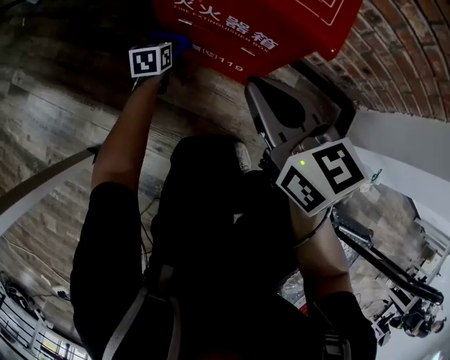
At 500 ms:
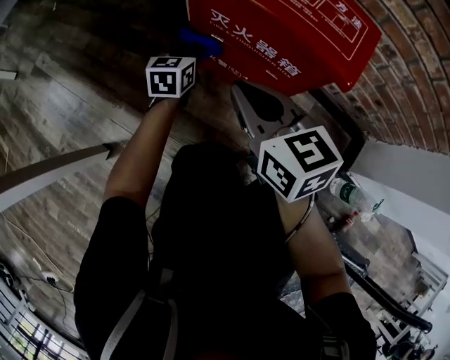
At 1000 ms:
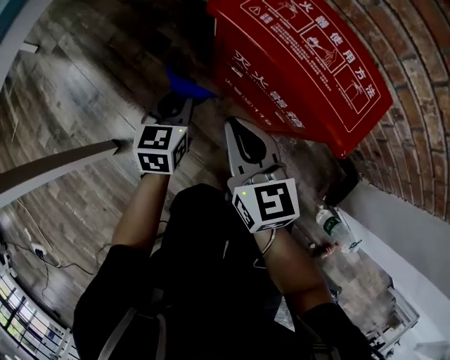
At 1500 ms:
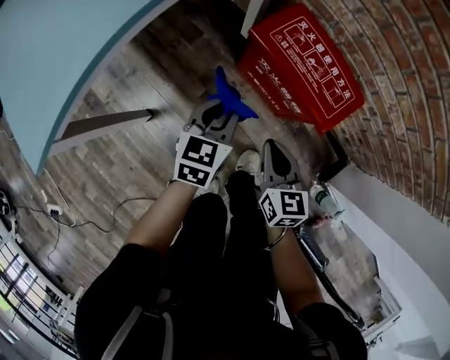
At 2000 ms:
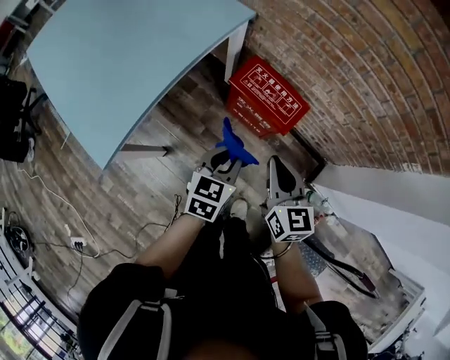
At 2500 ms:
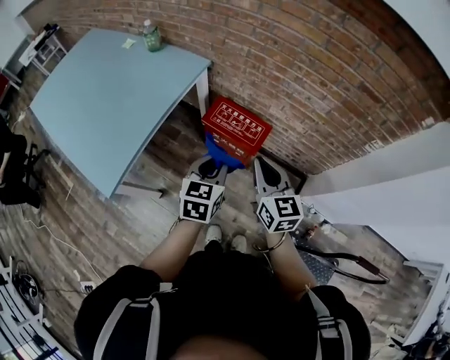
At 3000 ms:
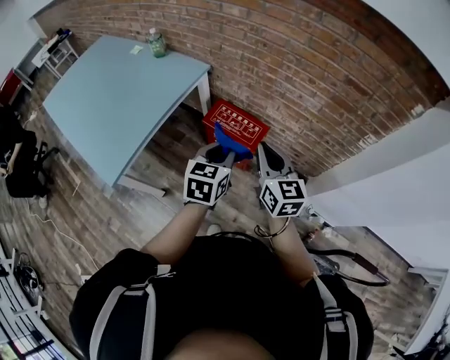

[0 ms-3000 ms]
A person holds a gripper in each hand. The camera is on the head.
0 ms to 1500 ms: The left gripper is displaced upward and backward by approximately 40 cm, while the right gripper travels upward by approximately 10 cm.
1500 ms to 3000 ms: Both grippers move upward, roughly 50 cm. The right gripper swivels about 20 degrees.

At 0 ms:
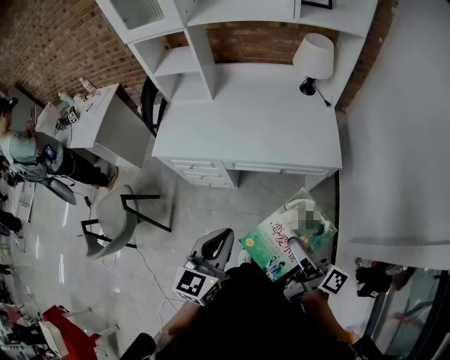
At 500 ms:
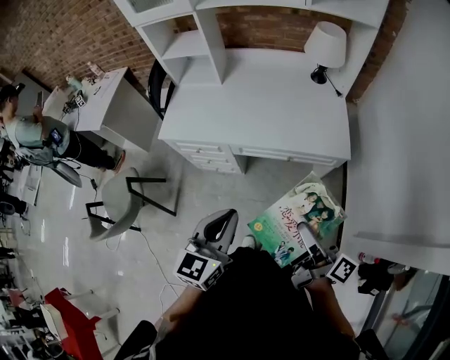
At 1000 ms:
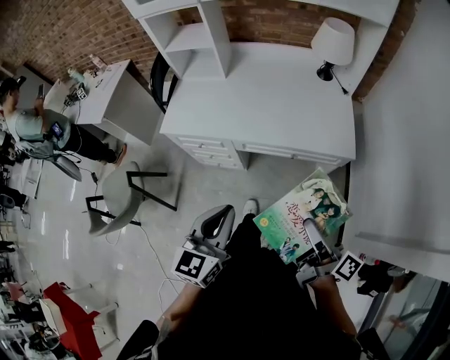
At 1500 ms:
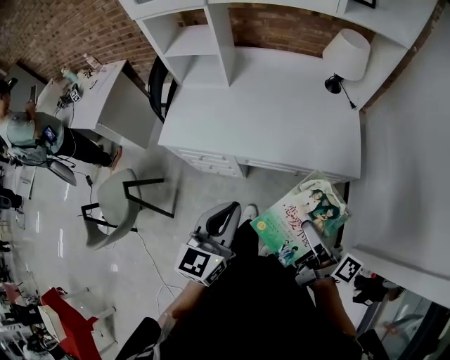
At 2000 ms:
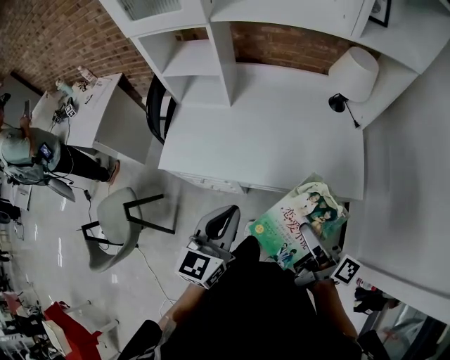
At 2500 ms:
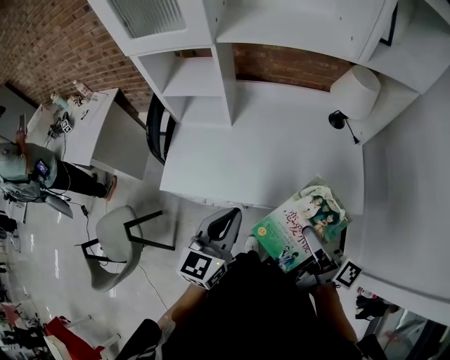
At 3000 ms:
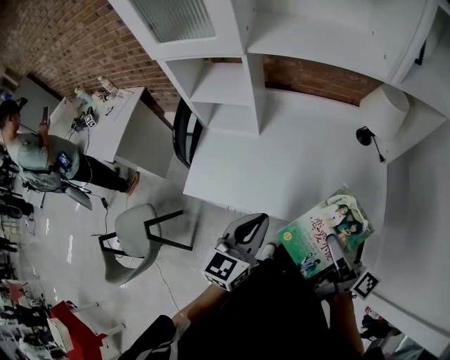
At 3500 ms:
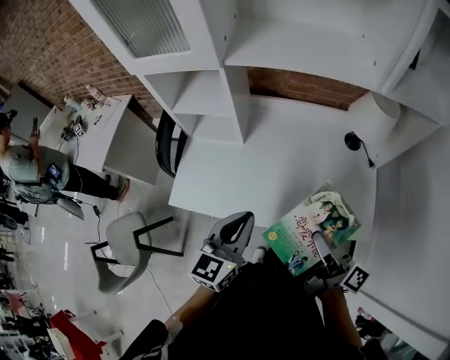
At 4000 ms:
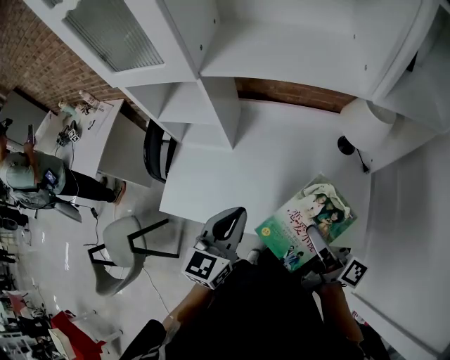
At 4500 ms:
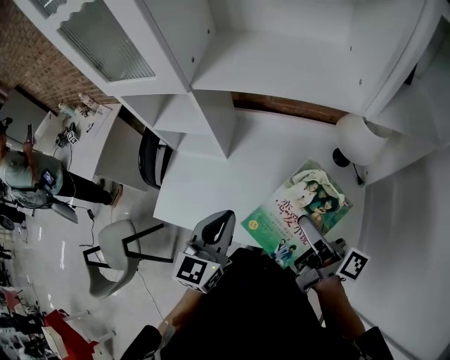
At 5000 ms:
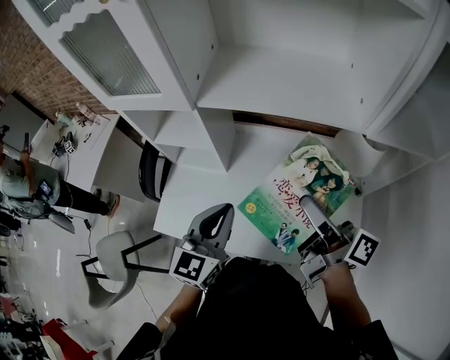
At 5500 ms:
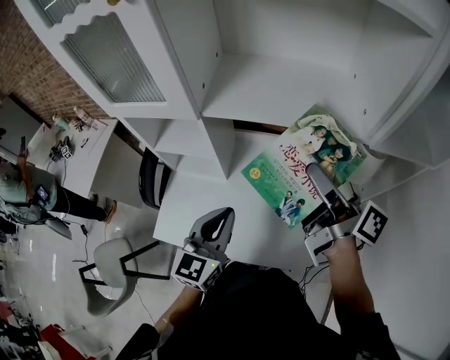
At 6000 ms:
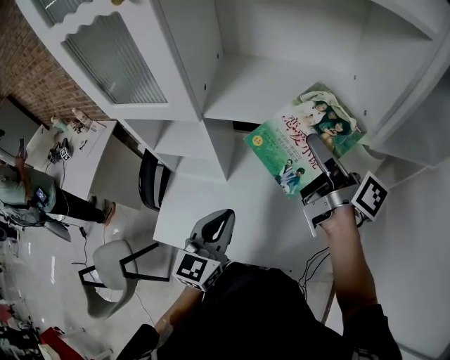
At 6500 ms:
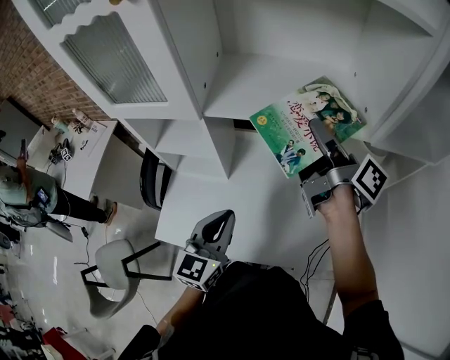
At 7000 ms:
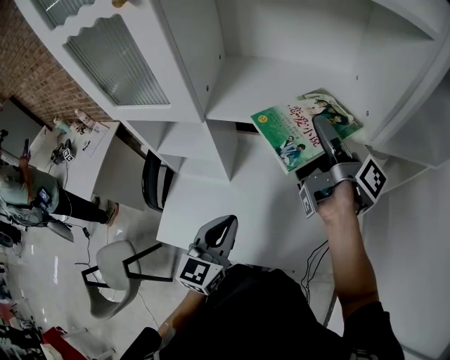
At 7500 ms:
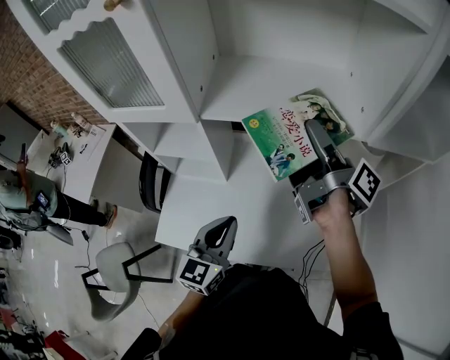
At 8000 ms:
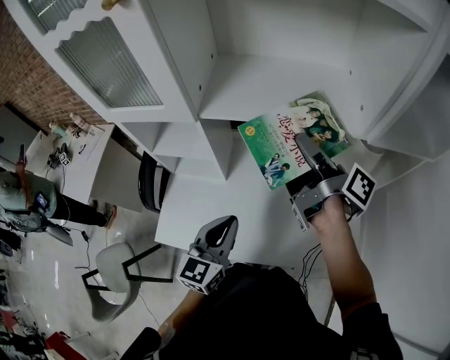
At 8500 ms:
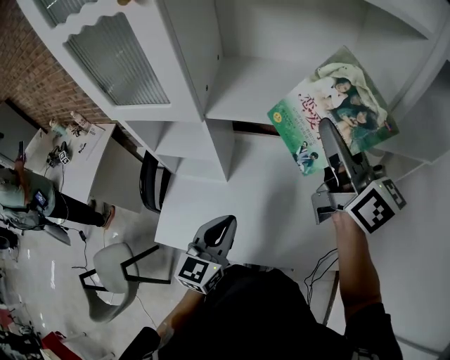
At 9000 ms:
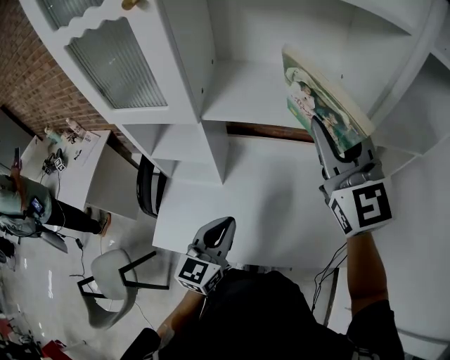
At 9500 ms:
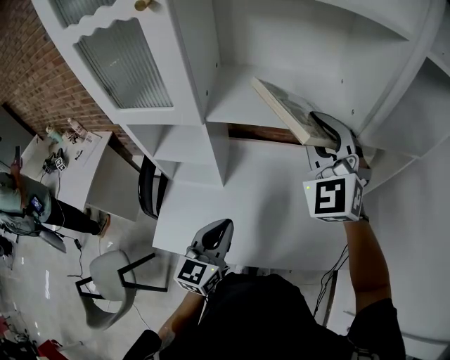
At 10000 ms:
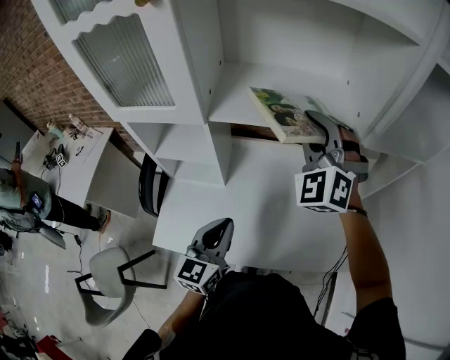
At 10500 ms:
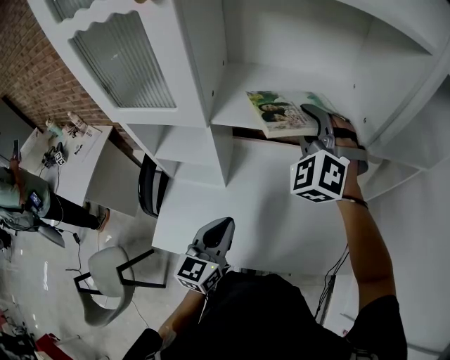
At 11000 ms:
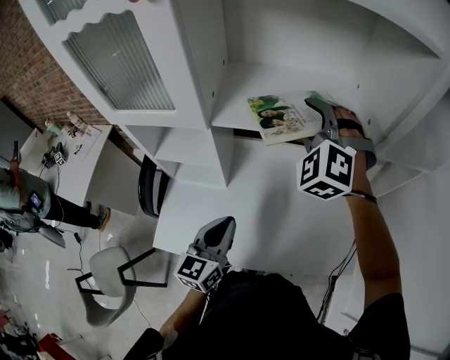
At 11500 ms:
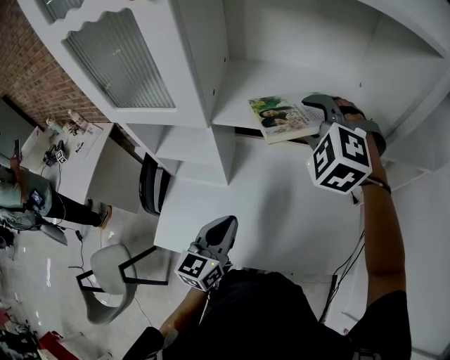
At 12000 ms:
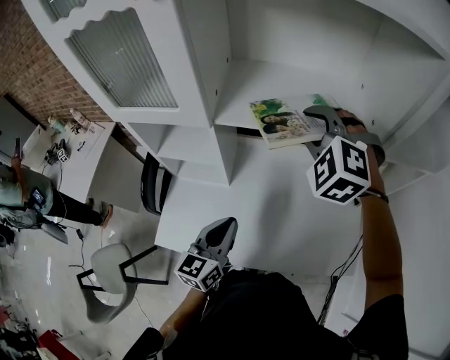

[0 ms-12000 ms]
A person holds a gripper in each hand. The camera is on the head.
0 ms to 2000 ms: The two grippers go about 20 cm forward.
2000 ms to 4000 ms: The grippers both shift forward by about 20 cm.
4000 ms to 6000 ms: The right gripper heads forward and upward, covering about 30 cm. Meanwhile the left gripper goes approximately 10 cm forward.
6000 ms to 8000 ms: The right gripper opens and closes again.
8000 ms to 10000 ms: The right gripper shifts about 5 cm upward, and twists approximately 150 degrees counterclockwise, seen from behind.
10000 ms to 12000 ms: The right gripper ends up approximately 5 cm from where it was, and rotates about 30 degrees.

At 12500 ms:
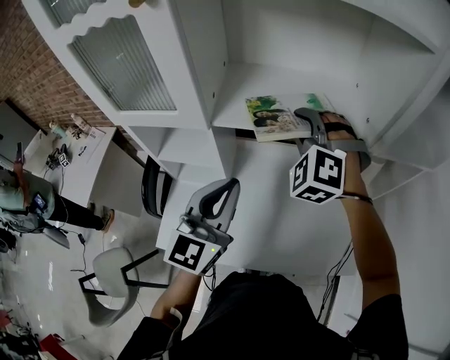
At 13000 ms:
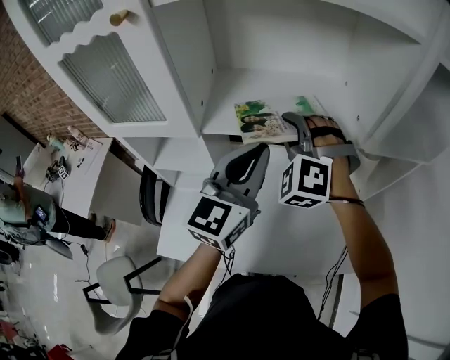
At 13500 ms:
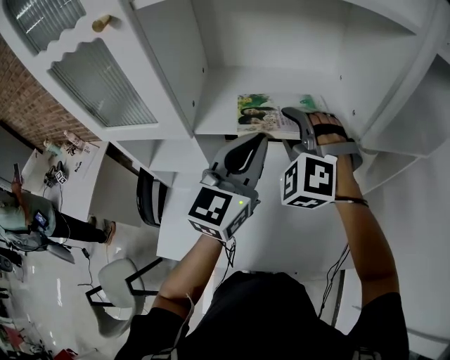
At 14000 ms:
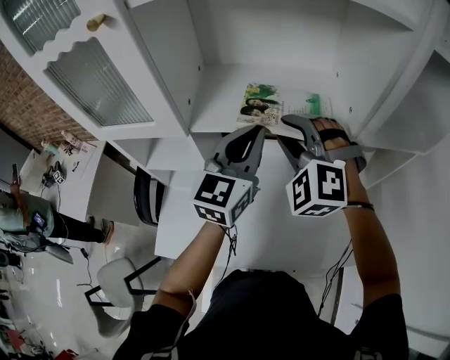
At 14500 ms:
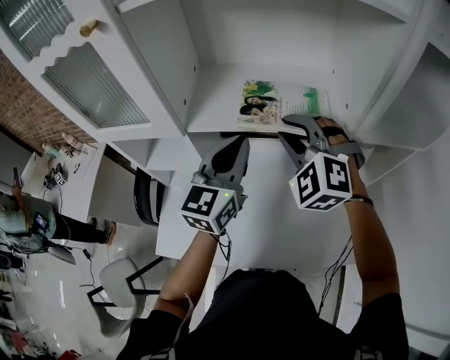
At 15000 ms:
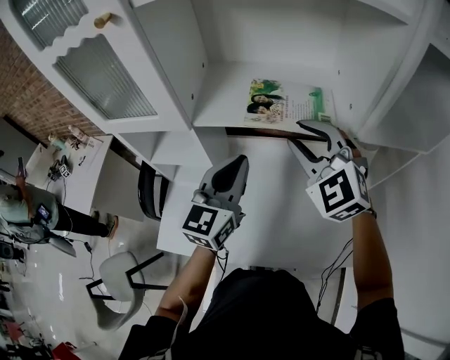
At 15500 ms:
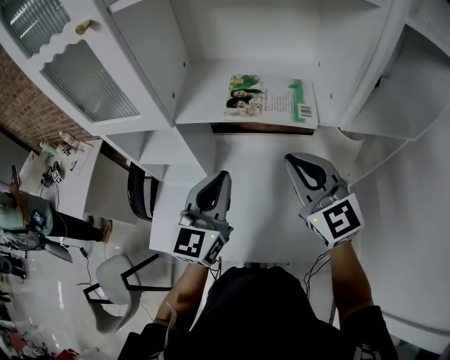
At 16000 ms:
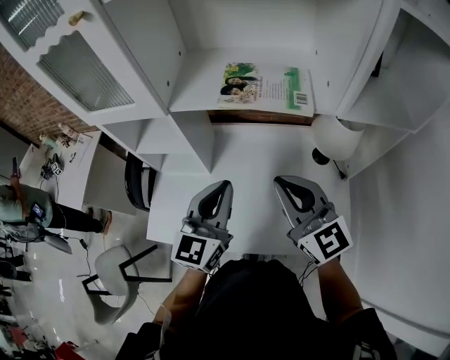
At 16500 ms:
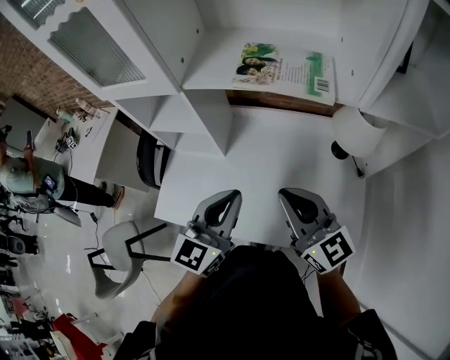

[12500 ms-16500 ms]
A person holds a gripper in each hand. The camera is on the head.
12500 ms to 14500 ms: The left gripper is displaced forward by about 10 cm.
14500 ms to 16500 ms: Both grippers move backward and downward, approximately 20 cm. The right gripper rolls clockwise, seen from behind, by some 60 degrees.

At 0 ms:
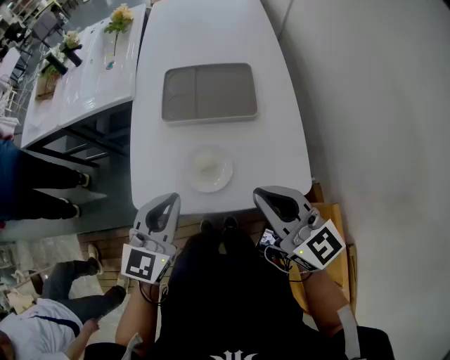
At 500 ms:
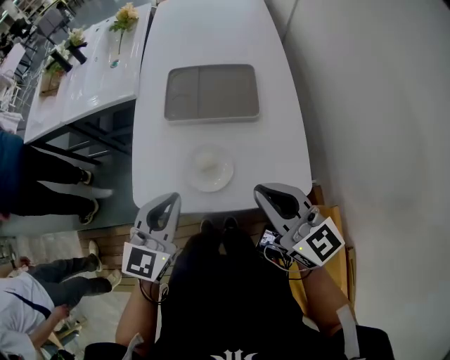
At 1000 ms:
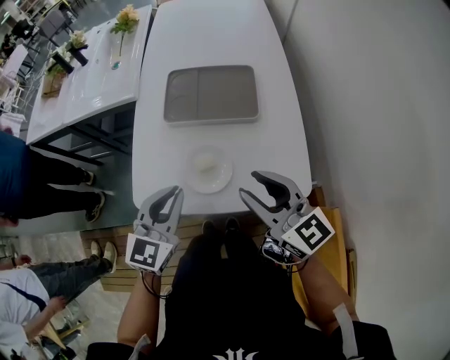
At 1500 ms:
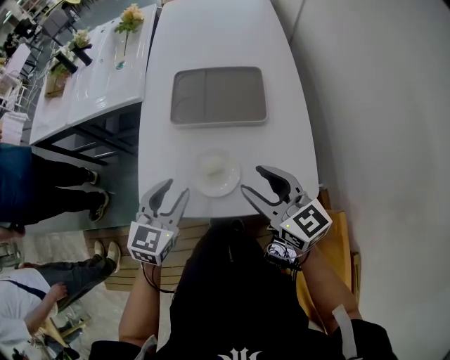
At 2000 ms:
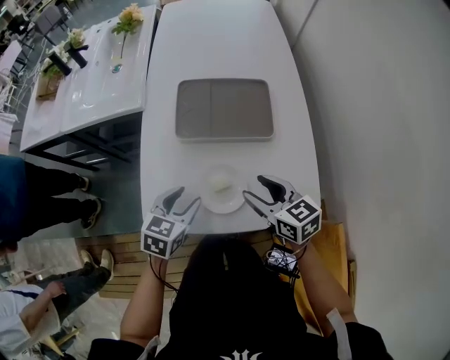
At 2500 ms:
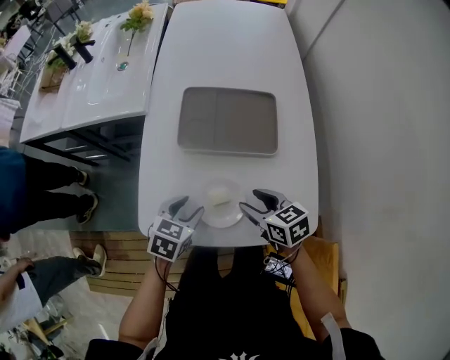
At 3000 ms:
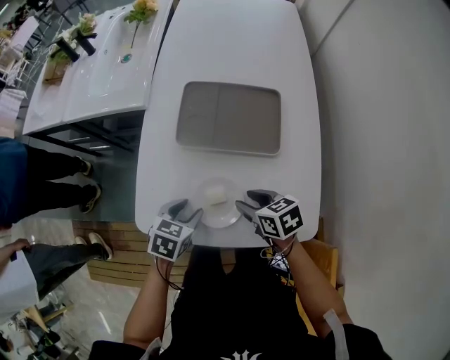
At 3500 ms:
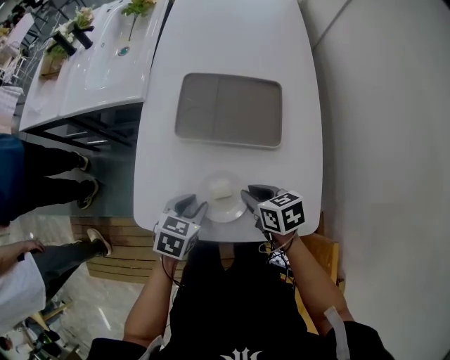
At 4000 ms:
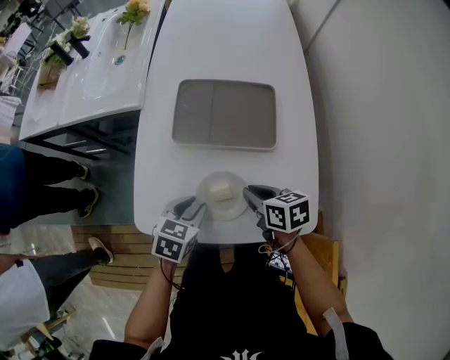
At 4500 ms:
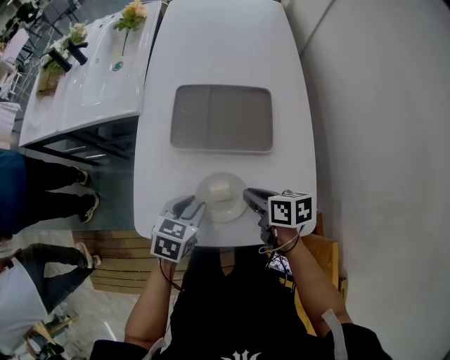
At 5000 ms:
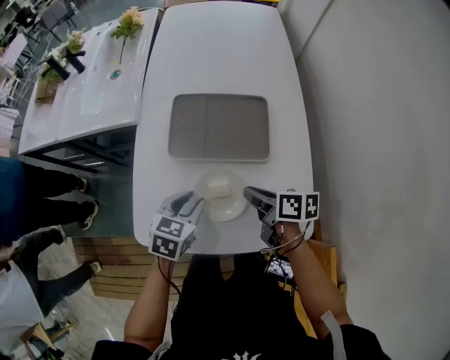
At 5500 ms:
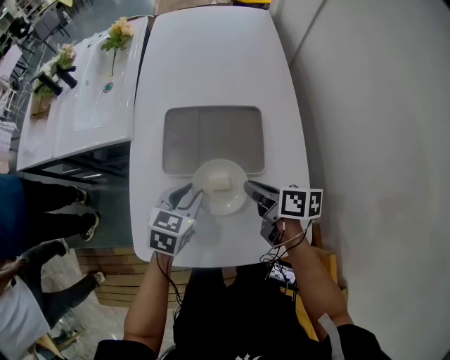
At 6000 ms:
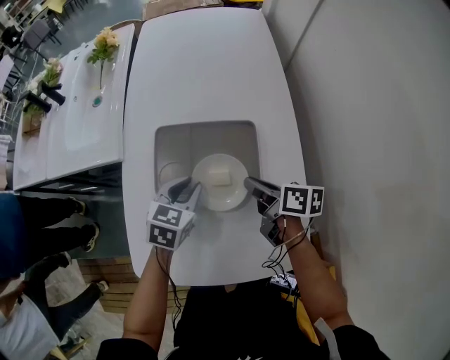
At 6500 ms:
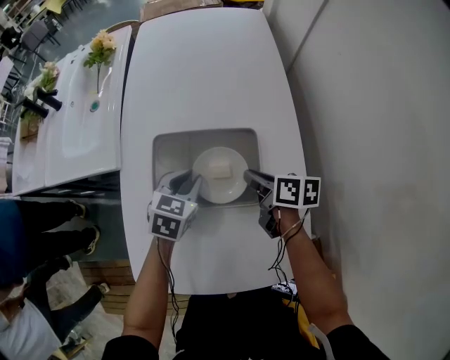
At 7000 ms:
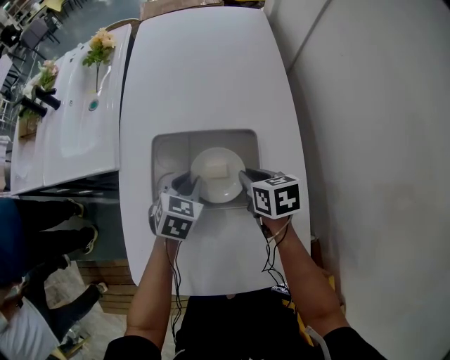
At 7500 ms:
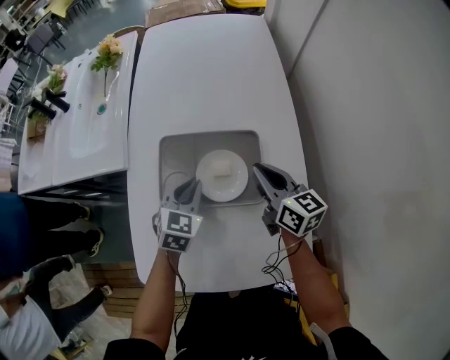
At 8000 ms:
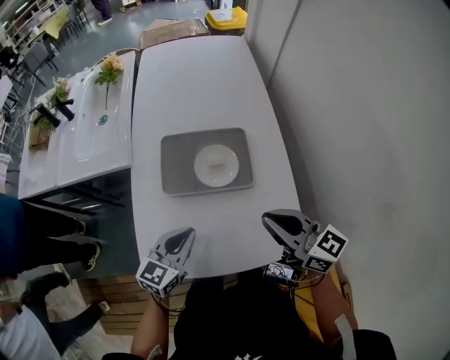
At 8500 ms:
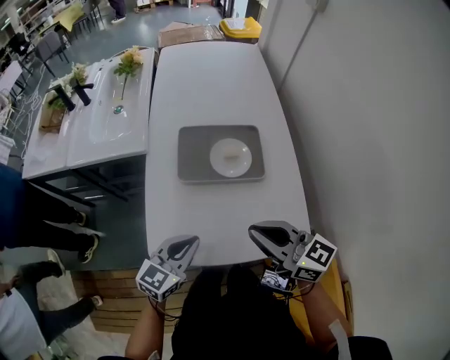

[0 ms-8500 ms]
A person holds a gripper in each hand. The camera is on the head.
0 ms to 2000 ms: The two grippers go some 15 cm downward and forward. The right gripper swivels approximately 30 degrees, and opens up; the left gripper swivels approximately 30 degrees, and opens.
2000 ms to 4000 ms: The left gripper changes place by approximately 5 cm; the right gripper shifts some 5 cm downward, changes its angle by roughly 20 degrees, and closes its fingers.
4000 ms to 6500 ms: The left gripper heads forward, covering roughly 25 cm, while the right gripper travels forward and to the right by roughly 20 cm, and swivels about 20 degrees.
6500 ms to 8500 ms: The right gripper heads backward, upward and to the left, covering roughly 35 cm, and rotates around the line of its fingers by approximately 40 degrees, counterclockwise from behind; the left gripper moves backward, approximately 30 cm, and changes its angle by about 30 degrees.
